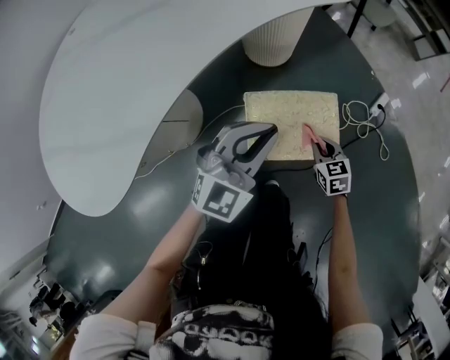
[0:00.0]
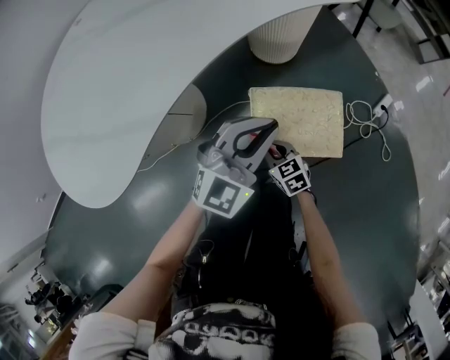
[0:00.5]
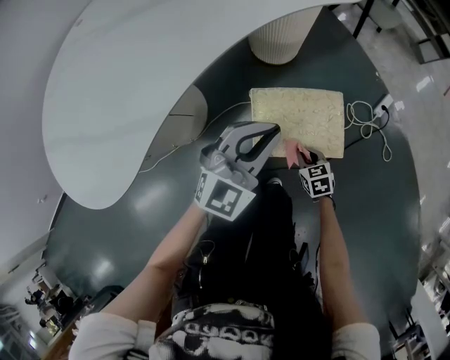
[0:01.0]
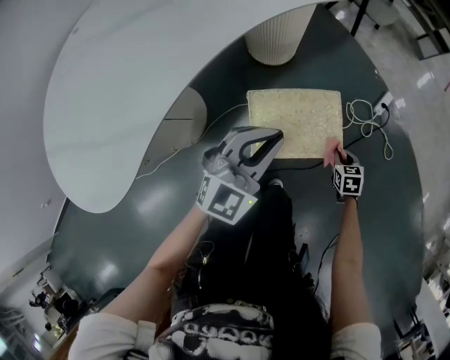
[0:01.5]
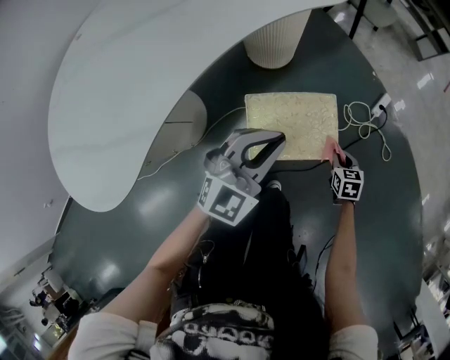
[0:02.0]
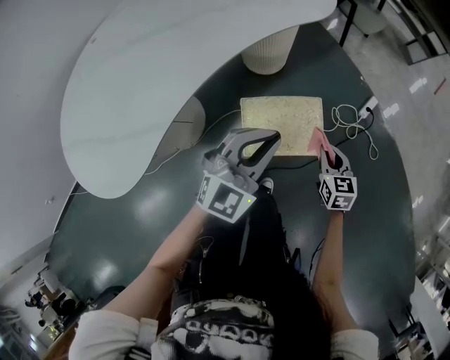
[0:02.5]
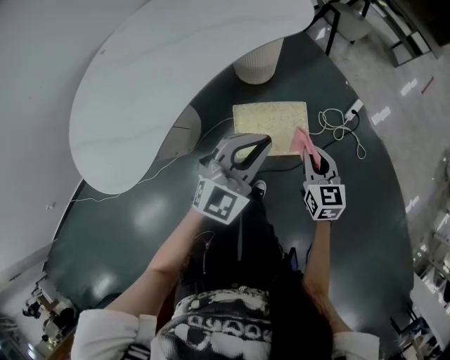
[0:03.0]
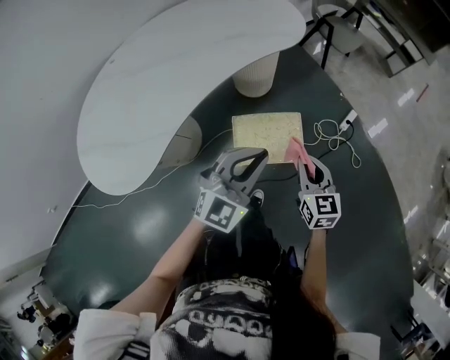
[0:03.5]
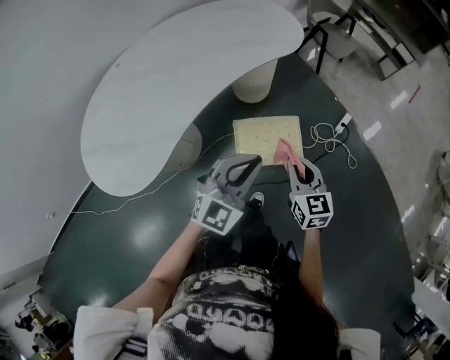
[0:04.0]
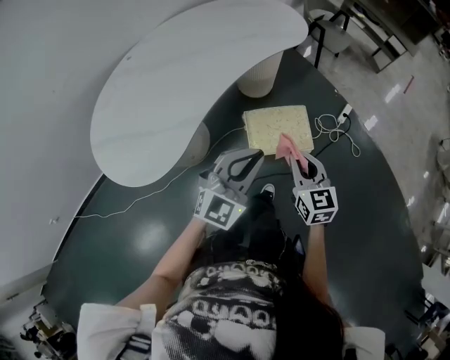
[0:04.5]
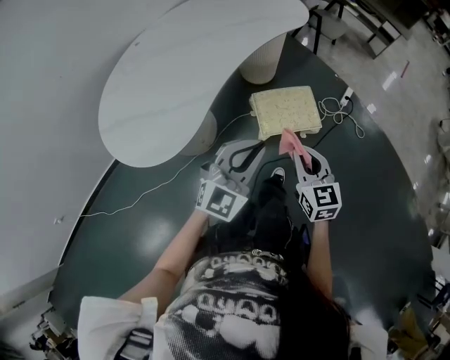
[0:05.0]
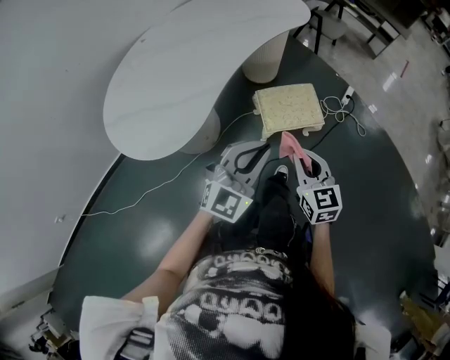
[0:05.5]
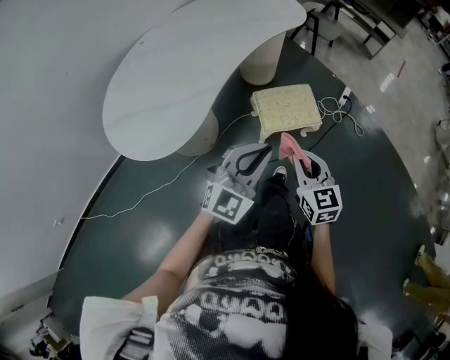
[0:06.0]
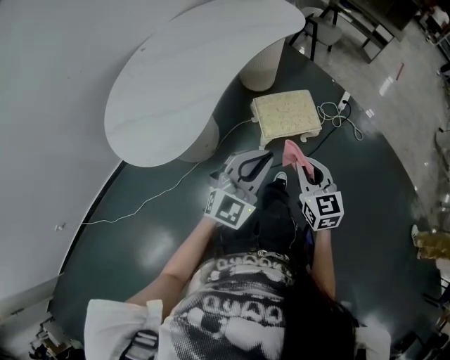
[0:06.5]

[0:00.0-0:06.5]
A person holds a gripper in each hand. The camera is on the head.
0:00.0 to 0:02.0: The right gripper is displaced to the right by about 10 cm.
0:02.0 to 0:04.5: The left gripper travels upward and backward by roughly 30 cm, while the right gripper is displaced upward and to the left by approximately 50 cm, and angles its fingers upward, by approximately 30 degrees.
0:04.5 to 0:06.5: The two grippers go approximately 15 cm backward.

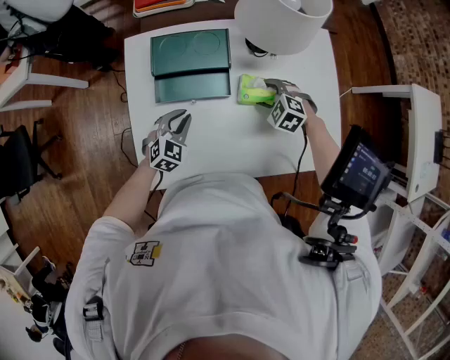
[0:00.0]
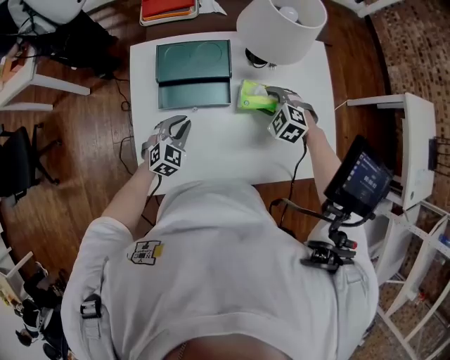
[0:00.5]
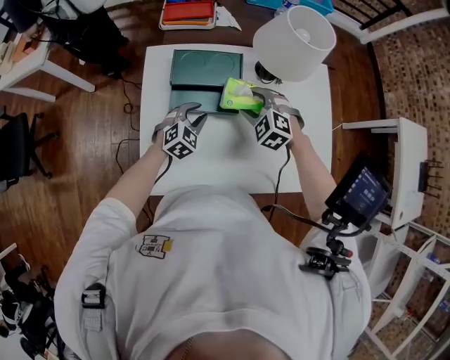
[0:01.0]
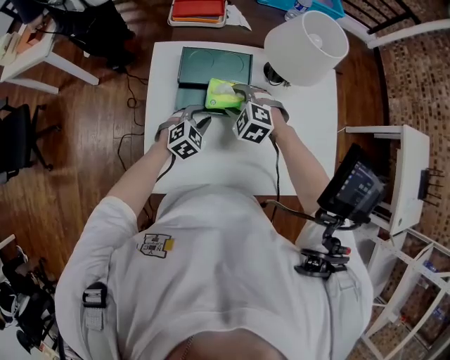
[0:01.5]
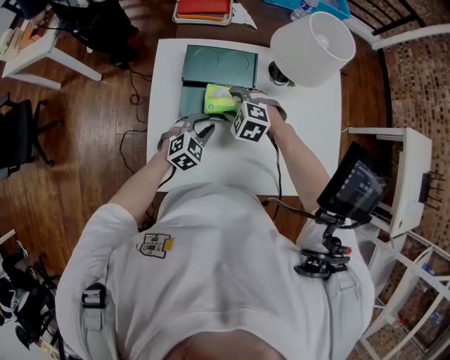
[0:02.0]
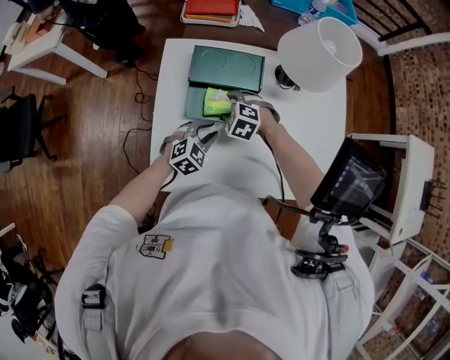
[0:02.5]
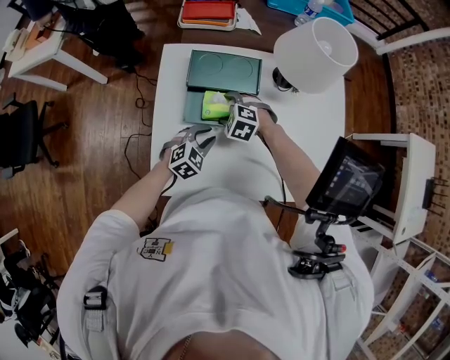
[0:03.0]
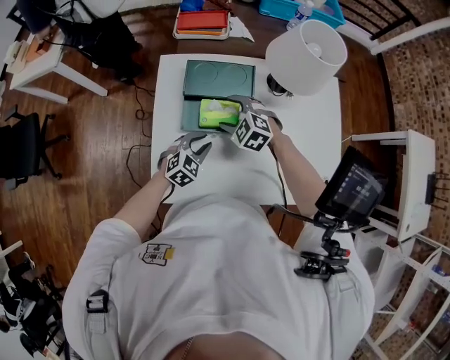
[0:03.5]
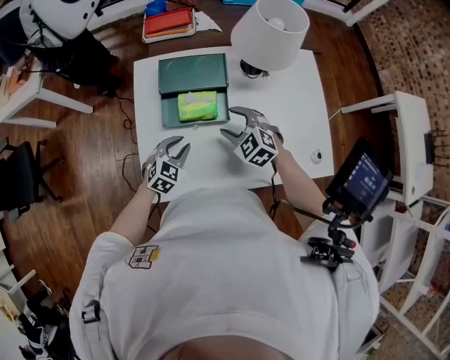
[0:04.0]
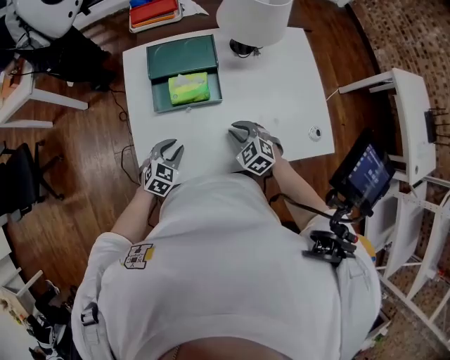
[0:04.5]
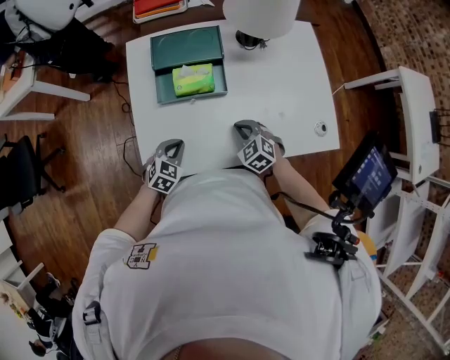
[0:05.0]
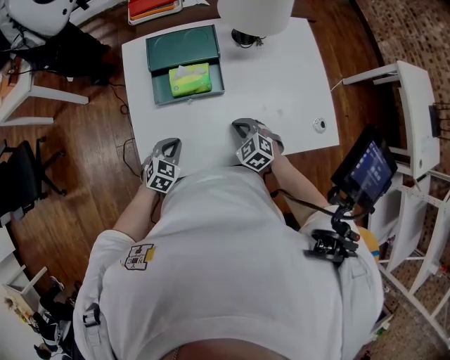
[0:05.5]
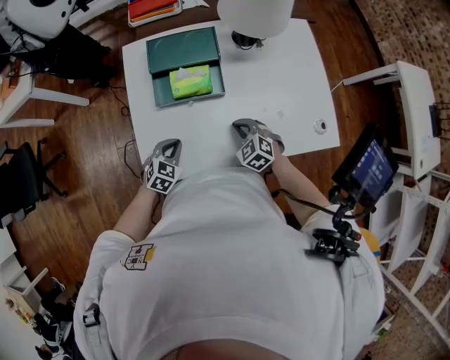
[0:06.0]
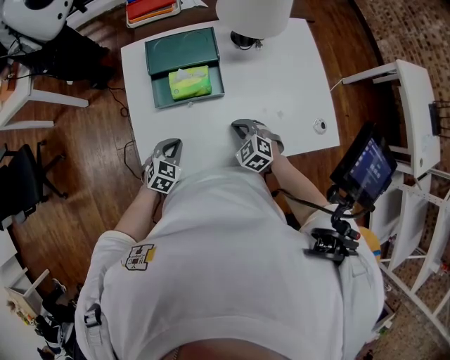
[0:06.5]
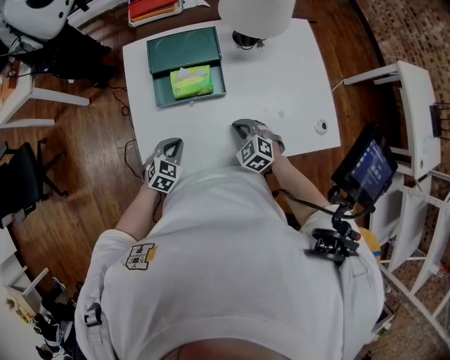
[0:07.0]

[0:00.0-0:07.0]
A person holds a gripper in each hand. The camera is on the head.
0:00.0 to 0:02.0: The right gripper is displaced to the left by about 20 cm.
0:02.0 to 0:03.5: The grippers make only small movements.
0:03.5 to 0:05.0: The left gripper heads backward, covering about 10 cm, and closes up; the right gripper shifts approximately 20 cm backward, to the right and downward, swivels roughly 30 degrees, and closes its fingers.
0:05.0 to 0:07.0: The grippers stay close to where they were, moving slightly.

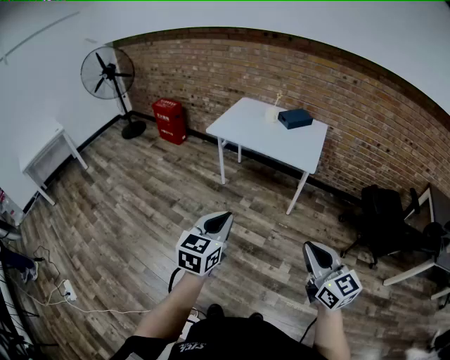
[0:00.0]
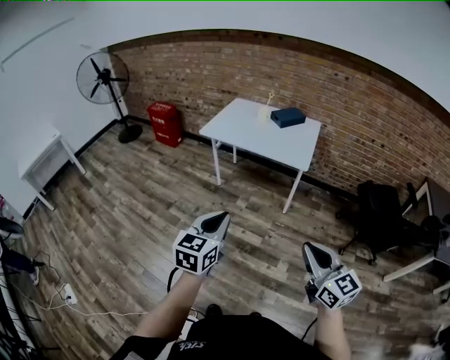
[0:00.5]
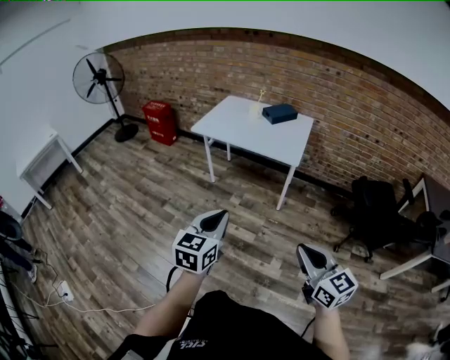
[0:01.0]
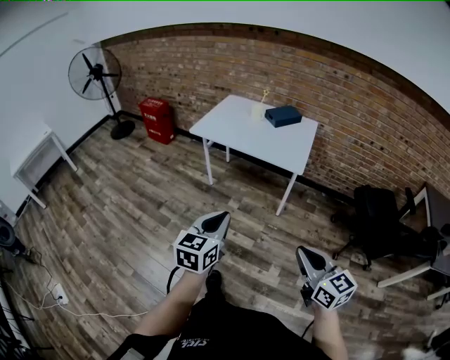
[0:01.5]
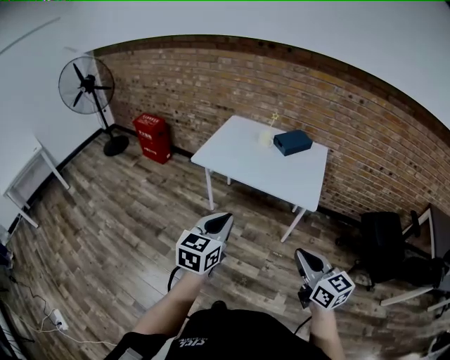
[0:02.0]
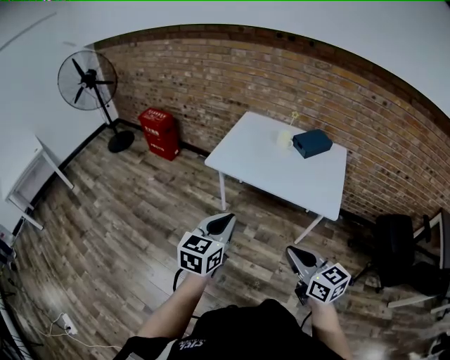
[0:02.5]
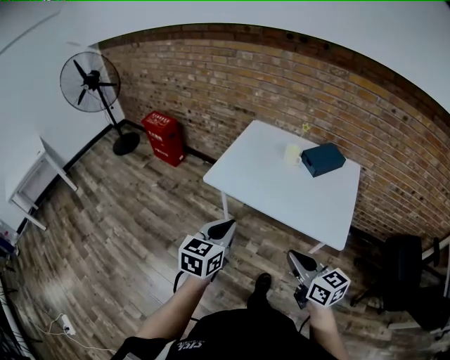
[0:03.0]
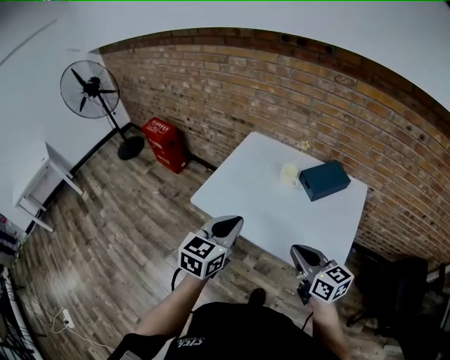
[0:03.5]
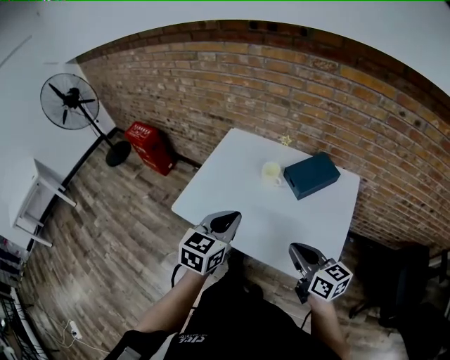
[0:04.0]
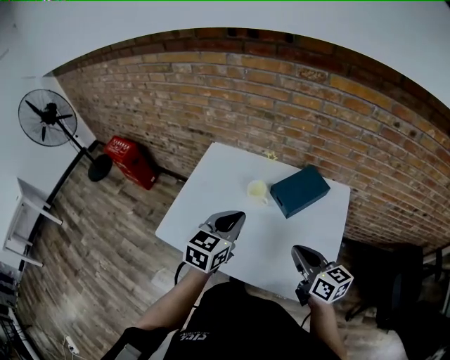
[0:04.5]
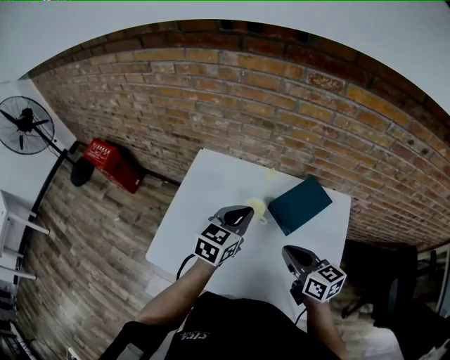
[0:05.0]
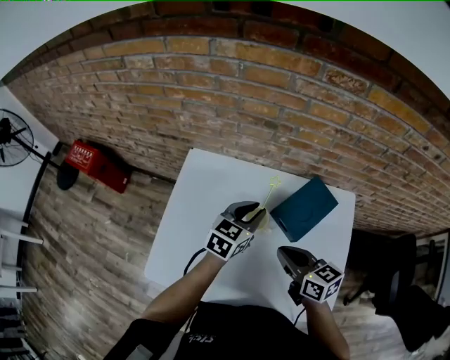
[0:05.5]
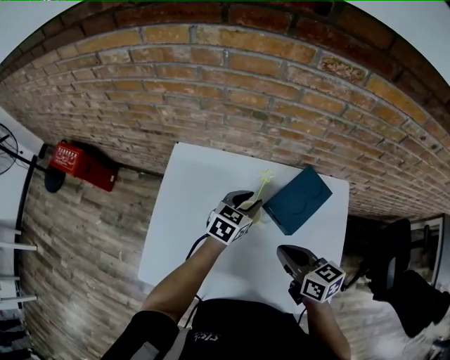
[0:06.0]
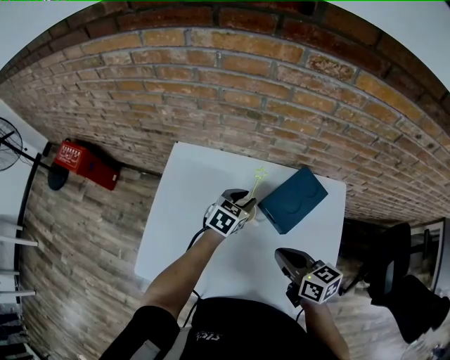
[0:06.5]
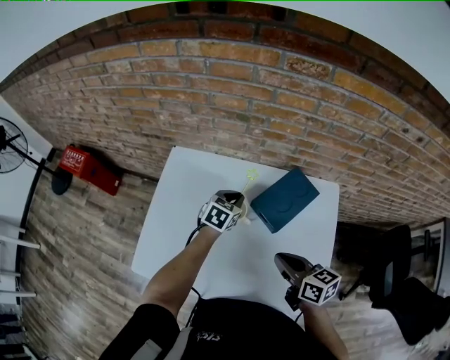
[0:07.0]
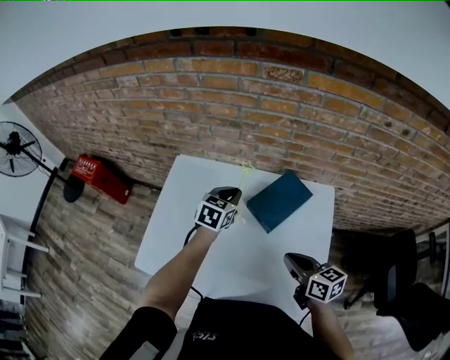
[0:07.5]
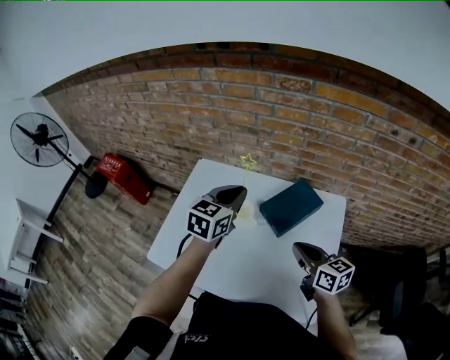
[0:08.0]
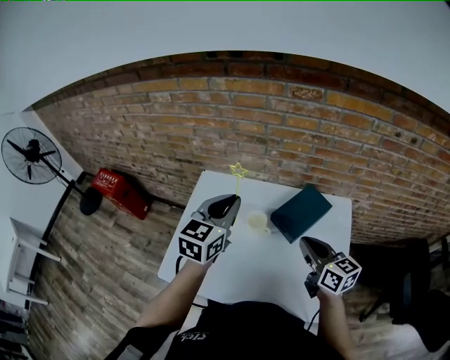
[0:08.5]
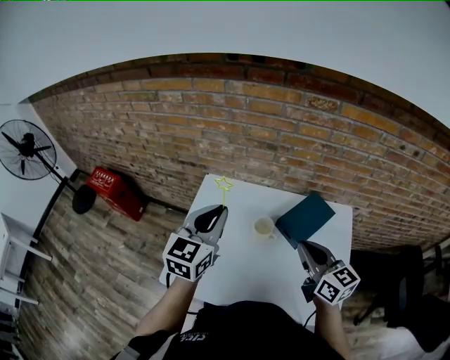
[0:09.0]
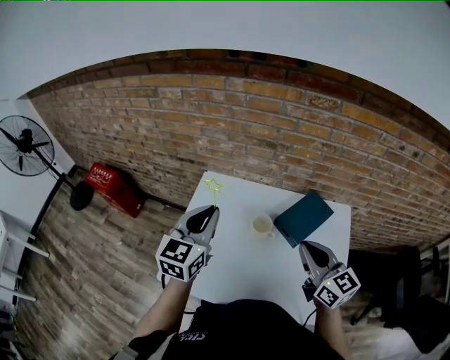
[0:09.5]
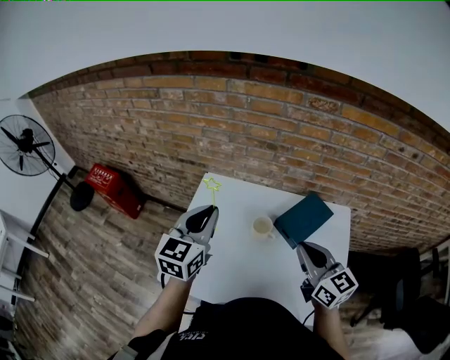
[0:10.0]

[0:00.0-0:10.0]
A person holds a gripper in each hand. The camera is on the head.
0:00.0 to 0:02.0: Both grippers travel together forward, roughly 25 cm.
0:02.0 to 0:04.0: The pair of grippers is taken forward, roughly 50 cm.
0:04.0 to 0:06.0: The right gripper travels forward by roughly 25 cm, while the left gripper is displaced forward and downward by roughly 40 cm, rotates about 30 degrees, and opens its fingers.
0:06.0 to 0:08.0: The right gripper heads to the right, covering roughly 10 cm. Meanwhile the left gripper travels upward by about 20 cm, and closes up.
0:08.0 to 0:10.0: The right gripper moves to the left and upward, approximately 15 cm, and turns by about 20 degrees. Meanwhile the left gripper moves to the left, about 20 cm.

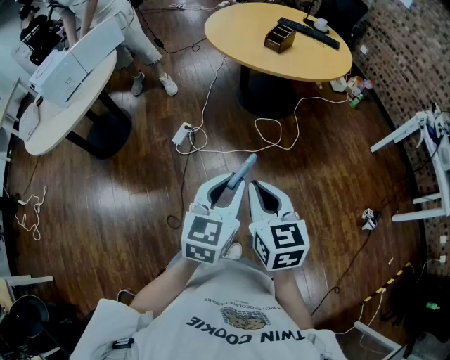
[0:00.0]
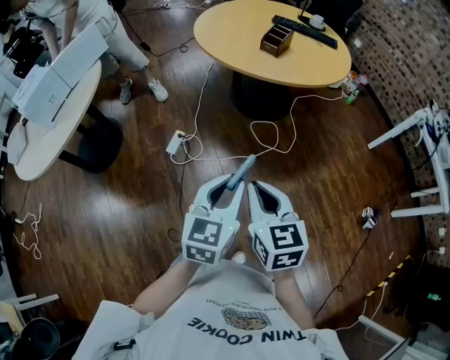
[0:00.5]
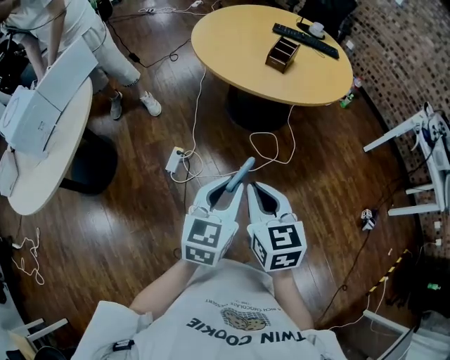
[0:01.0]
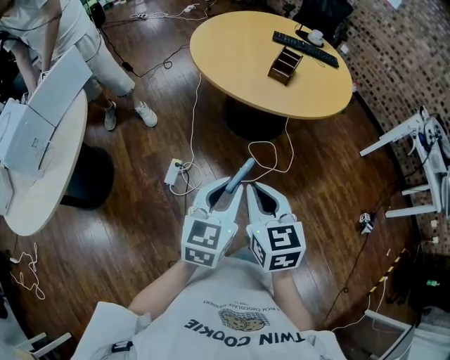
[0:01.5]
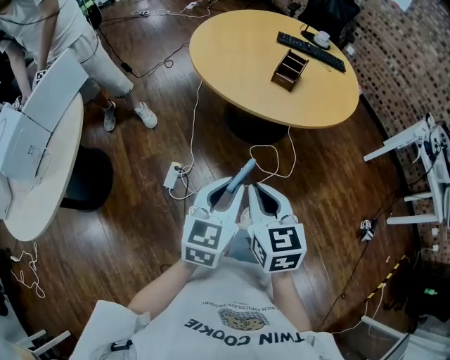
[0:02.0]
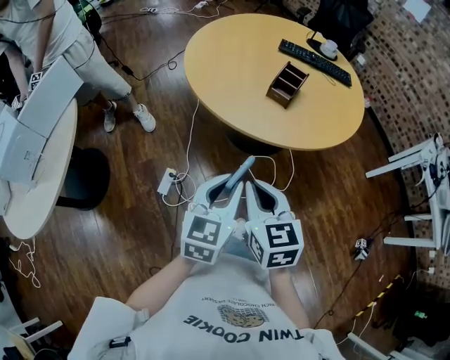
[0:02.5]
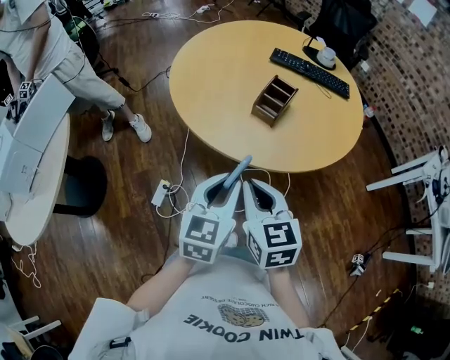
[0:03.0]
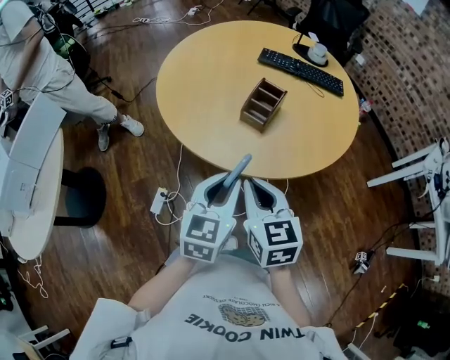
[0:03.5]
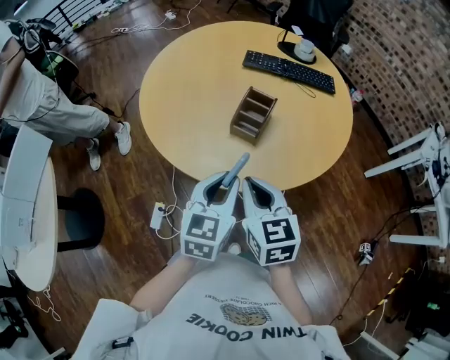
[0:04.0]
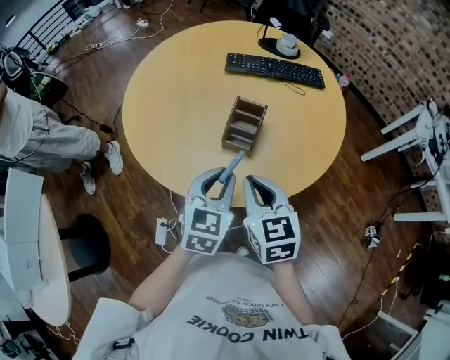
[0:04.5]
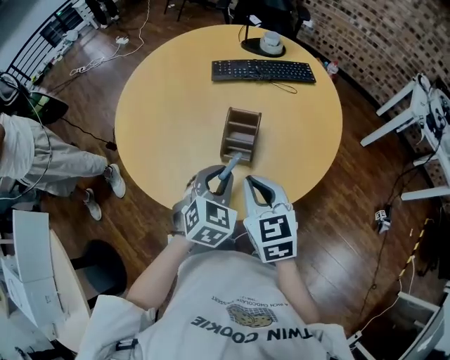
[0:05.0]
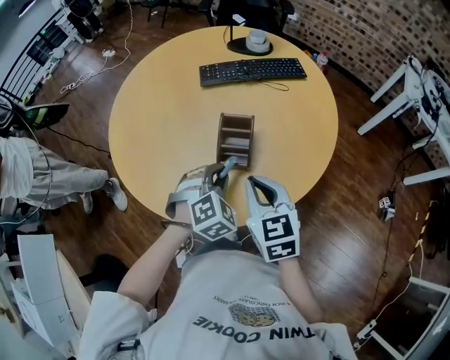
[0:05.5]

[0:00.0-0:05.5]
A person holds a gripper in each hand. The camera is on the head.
0:00.0 to 0:02.0: Both grippers travel together forward and to the left, about 35 cm.
0:02.0 to 0:03.5: The two grippers go about 30 cm forward and to the right.
0:03.5 to 0:05.5: The right gripper is displaced forward by some 20 cm, and changes its angle by some 20 degrees; the left gripper heads forward and downward, covering some 25 cm, and twists approximately 60 degrees clockwise, seen from behind.
